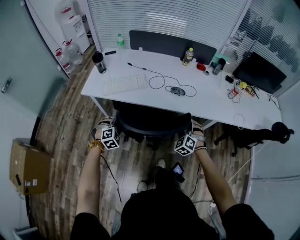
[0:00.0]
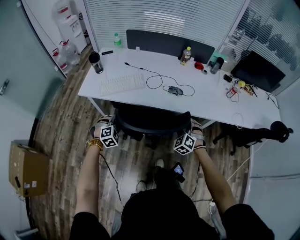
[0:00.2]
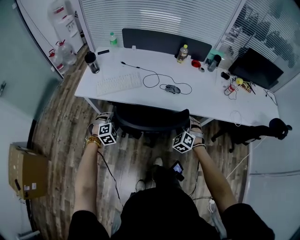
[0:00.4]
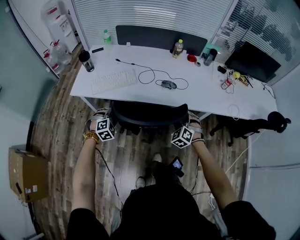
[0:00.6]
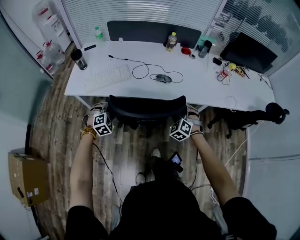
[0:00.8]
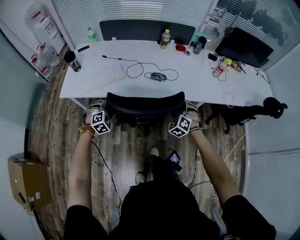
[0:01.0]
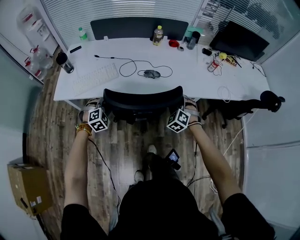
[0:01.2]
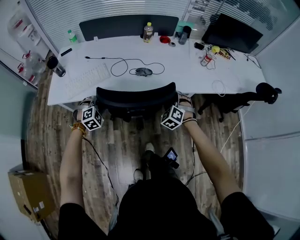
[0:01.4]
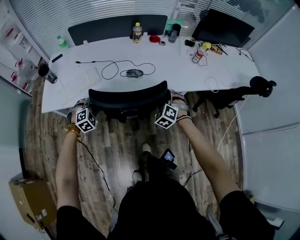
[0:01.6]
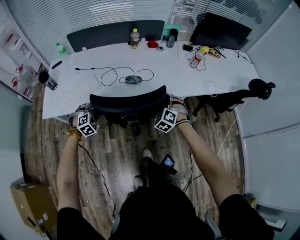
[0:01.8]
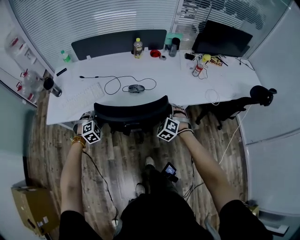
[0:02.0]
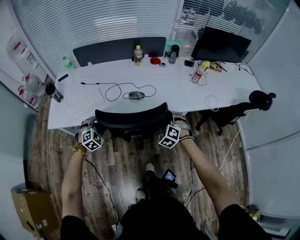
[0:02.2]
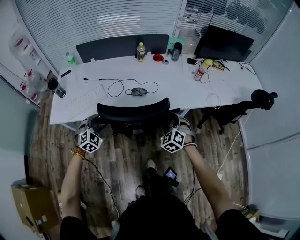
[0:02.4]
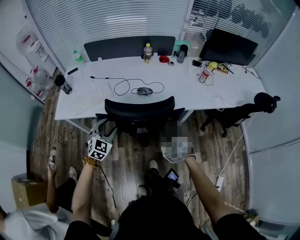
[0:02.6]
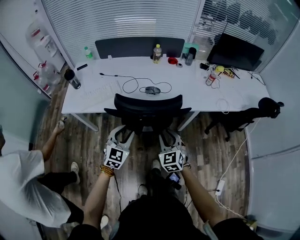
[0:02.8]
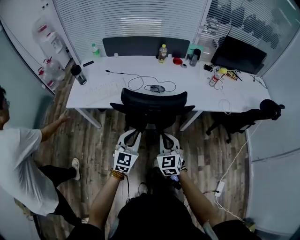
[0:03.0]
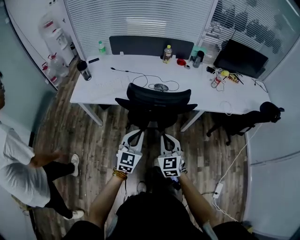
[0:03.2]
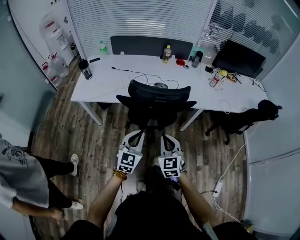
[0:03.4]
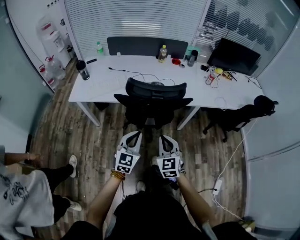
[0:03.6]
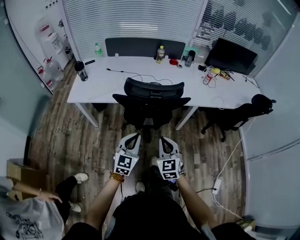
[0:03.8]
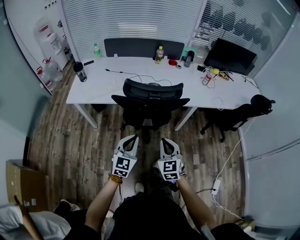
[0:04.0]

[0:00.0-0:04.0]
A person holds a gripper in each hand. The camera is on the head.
0:00.0 to 0:01.4: The right gripper shifts approximately 10 cm to the right and forward, while the left gripper is displaced forward and to the right by about 15 cm.
0:01.4 to 0:02.6: The right gripper travels backward by about 10 cm, and rotates some 20 degrees; the left gripper goes about 10 cm upward and to the right, and changes its angle by approximately 30 degrees.
0:02.6 to 0:04.0: The two grippers go about 20 cm backward. The right gripper swivels roughly 20 degrees, and closes, while the left gripper rotates approximately 30 degrees, and closes its fingers.

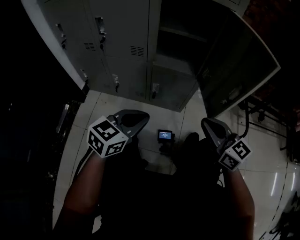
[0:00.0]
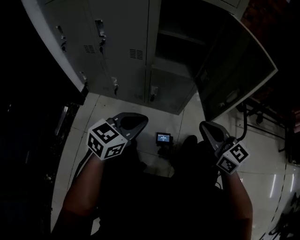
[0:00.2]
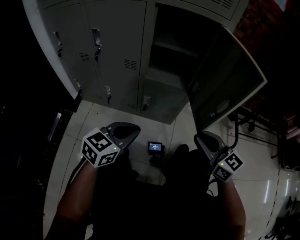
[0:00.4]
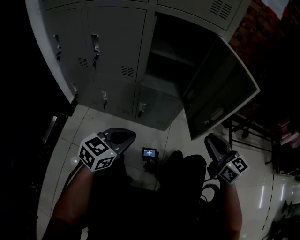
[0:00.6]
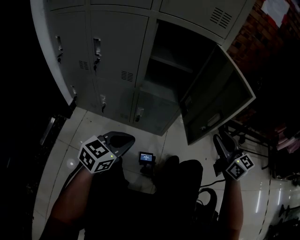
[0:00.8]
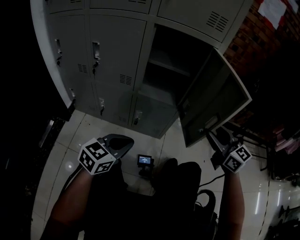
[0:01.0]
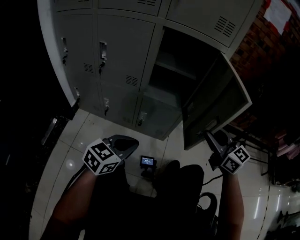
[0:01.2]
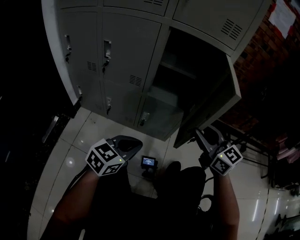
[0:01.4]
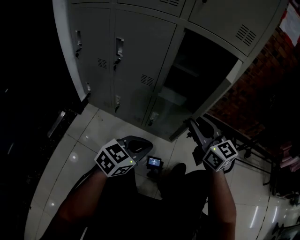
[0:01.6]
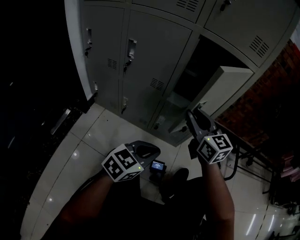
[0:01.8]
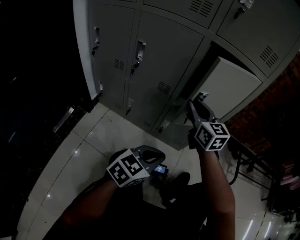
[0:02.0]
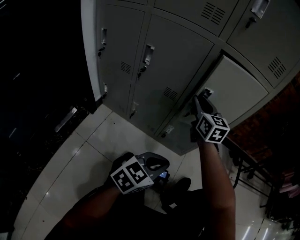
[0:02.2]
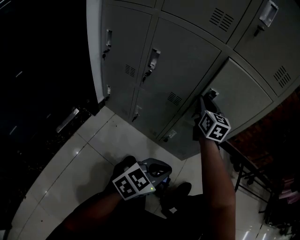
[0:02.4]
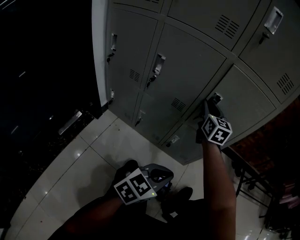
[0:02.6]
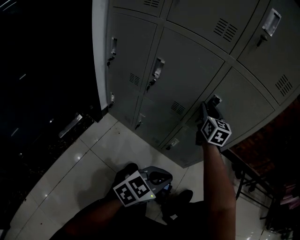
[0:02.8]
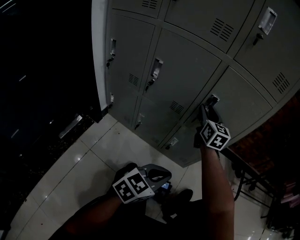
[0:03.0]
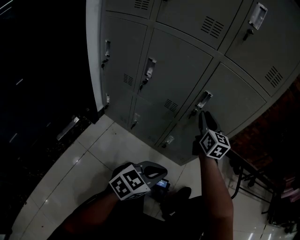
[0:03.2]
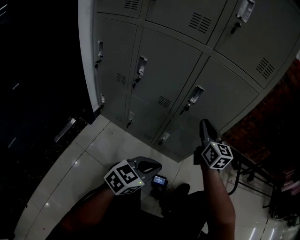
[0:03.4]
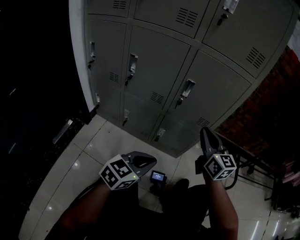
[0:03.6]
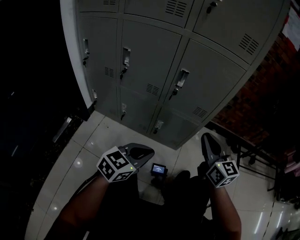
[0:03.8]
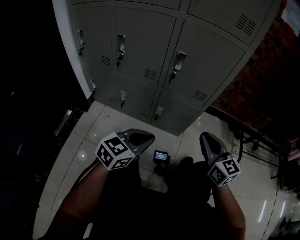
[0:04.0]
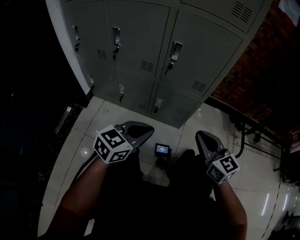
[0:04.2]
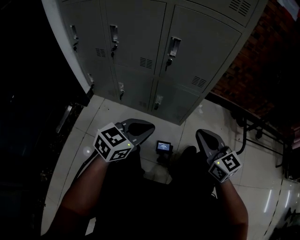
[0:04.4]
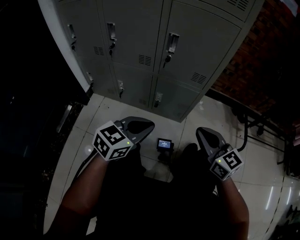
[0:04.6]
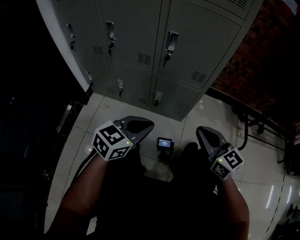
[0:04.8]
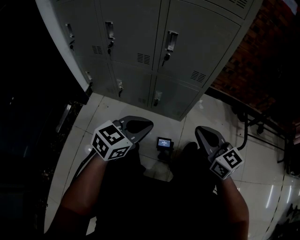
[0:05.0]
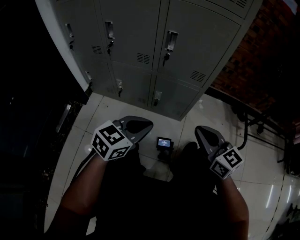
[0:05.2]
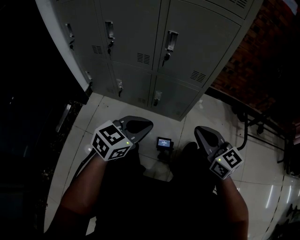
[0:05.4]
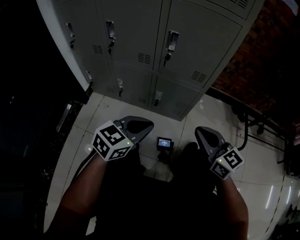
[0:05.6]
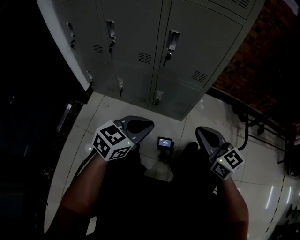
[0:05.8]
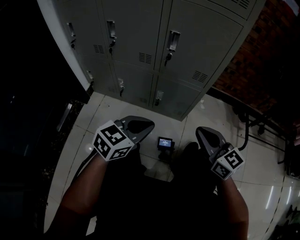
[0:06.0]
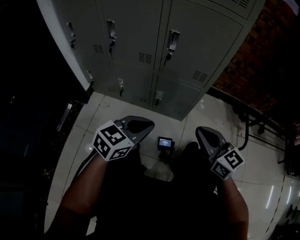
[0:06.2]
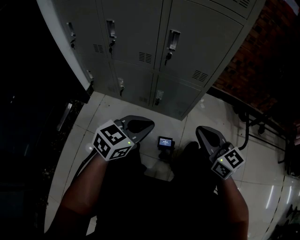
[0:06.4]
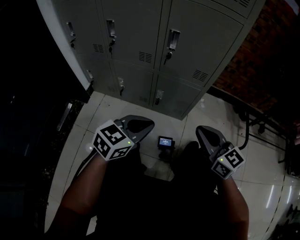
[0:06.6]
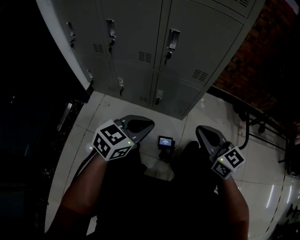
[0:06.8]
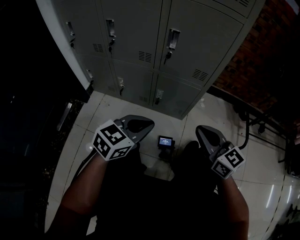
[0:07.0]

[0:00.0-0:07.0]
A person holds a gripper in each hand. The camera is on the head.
0:00.0 to 0:01.4: The right gripper travels forward and upward by roughly 10 cm, travels to the right and back again, about 10 cm each way, and opens up.
0:01.4 to 0:02.8: The right gripper heads forward and to the left, covering approximately 30 cm.
0:02.8 to 0:04.2: The right gripper shifts some 35 cm backward and to the right, and closes up.
0:04.2 to 0:05.6: The grippers stay close to where they were, moving slightly.
0:05.6 to 0:07.0: Both grippers stay about where they are.

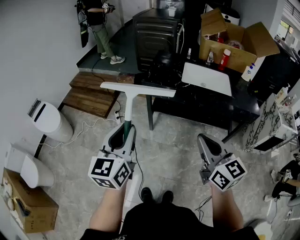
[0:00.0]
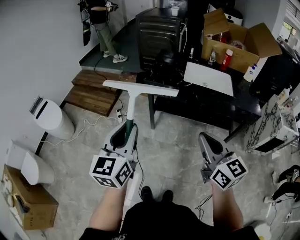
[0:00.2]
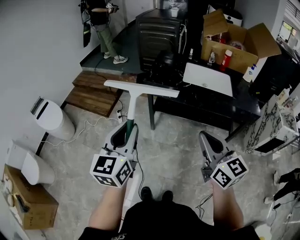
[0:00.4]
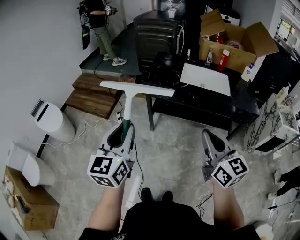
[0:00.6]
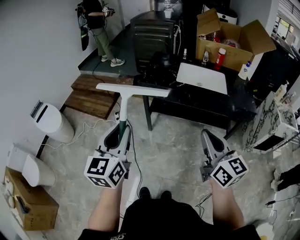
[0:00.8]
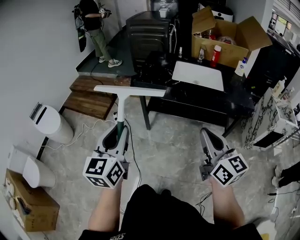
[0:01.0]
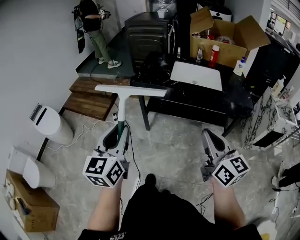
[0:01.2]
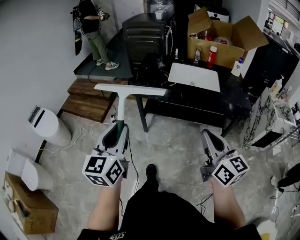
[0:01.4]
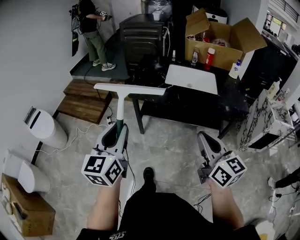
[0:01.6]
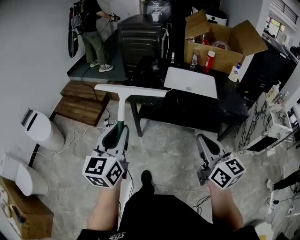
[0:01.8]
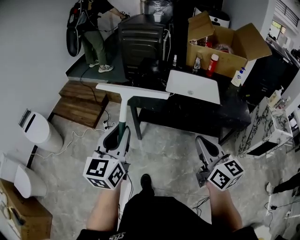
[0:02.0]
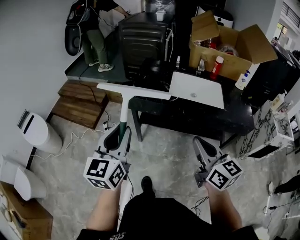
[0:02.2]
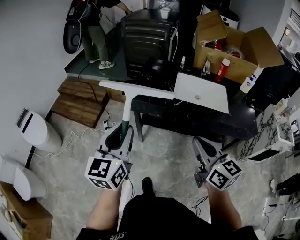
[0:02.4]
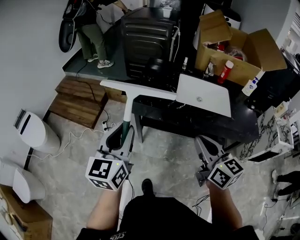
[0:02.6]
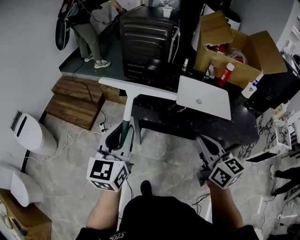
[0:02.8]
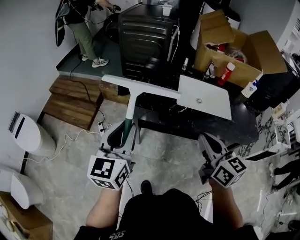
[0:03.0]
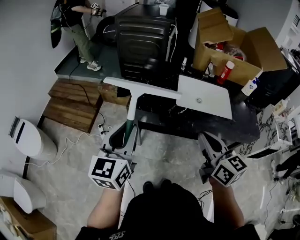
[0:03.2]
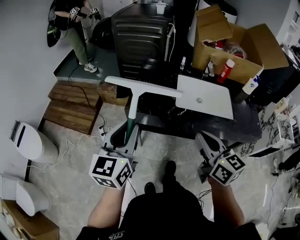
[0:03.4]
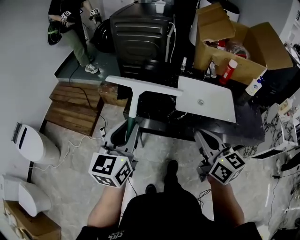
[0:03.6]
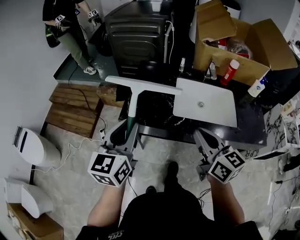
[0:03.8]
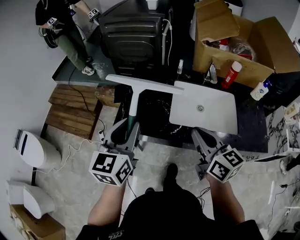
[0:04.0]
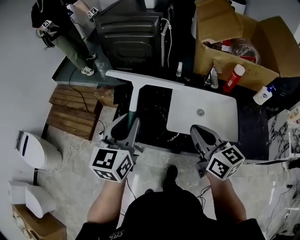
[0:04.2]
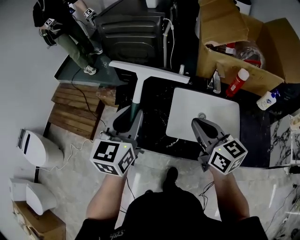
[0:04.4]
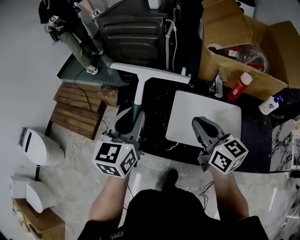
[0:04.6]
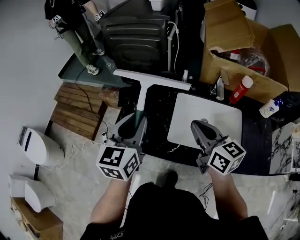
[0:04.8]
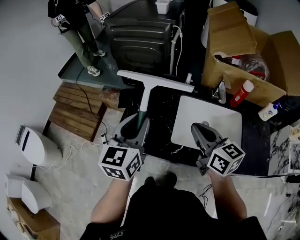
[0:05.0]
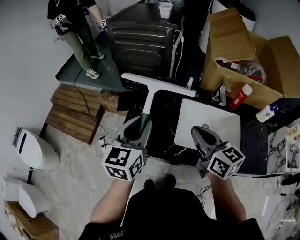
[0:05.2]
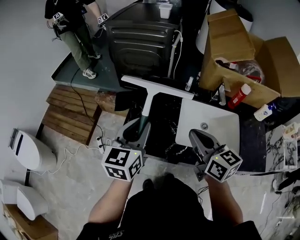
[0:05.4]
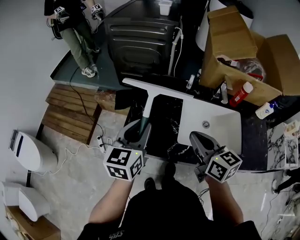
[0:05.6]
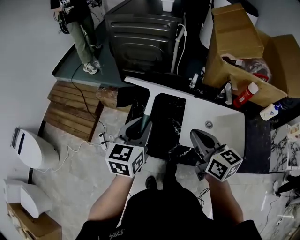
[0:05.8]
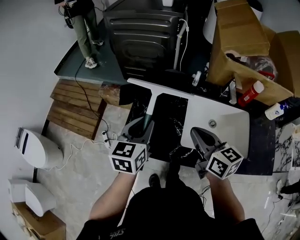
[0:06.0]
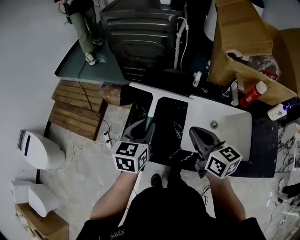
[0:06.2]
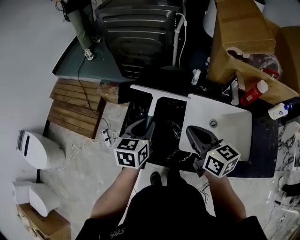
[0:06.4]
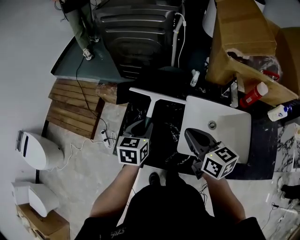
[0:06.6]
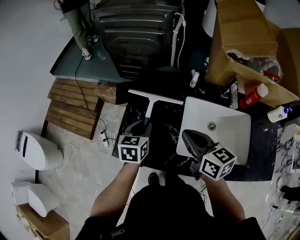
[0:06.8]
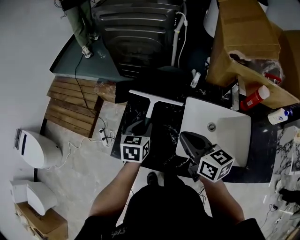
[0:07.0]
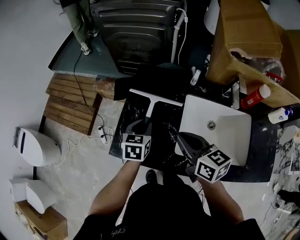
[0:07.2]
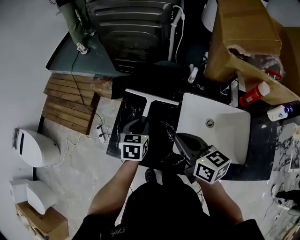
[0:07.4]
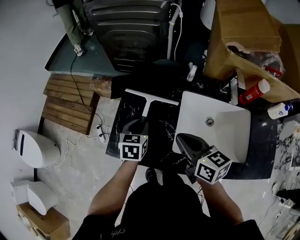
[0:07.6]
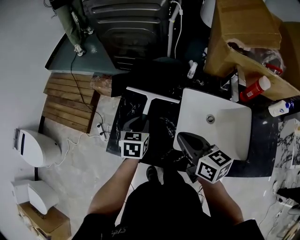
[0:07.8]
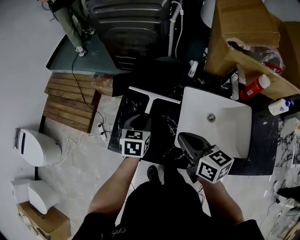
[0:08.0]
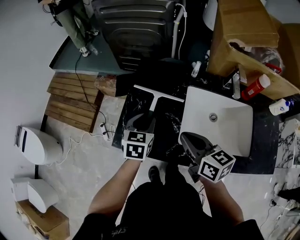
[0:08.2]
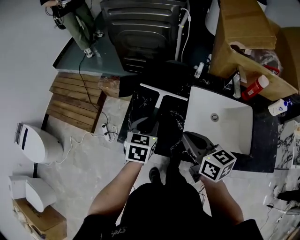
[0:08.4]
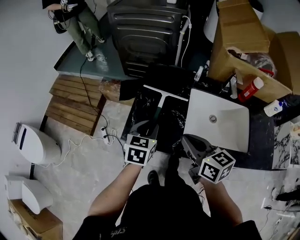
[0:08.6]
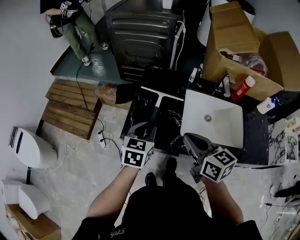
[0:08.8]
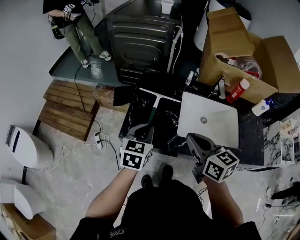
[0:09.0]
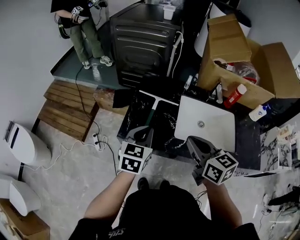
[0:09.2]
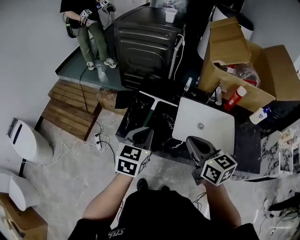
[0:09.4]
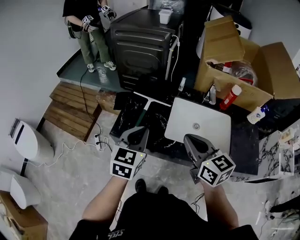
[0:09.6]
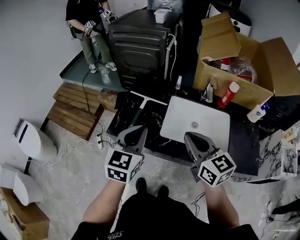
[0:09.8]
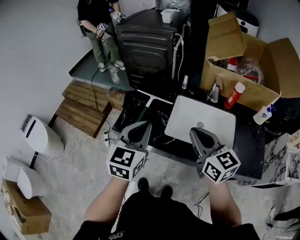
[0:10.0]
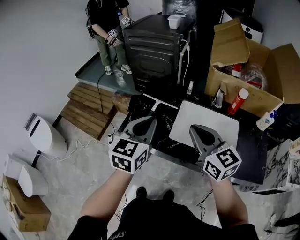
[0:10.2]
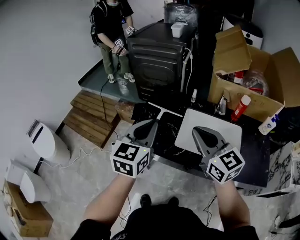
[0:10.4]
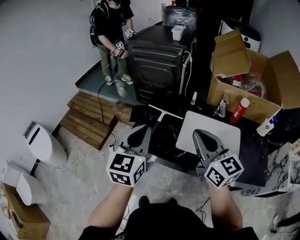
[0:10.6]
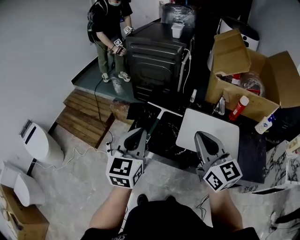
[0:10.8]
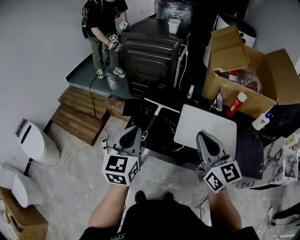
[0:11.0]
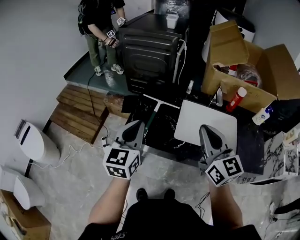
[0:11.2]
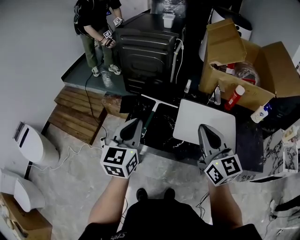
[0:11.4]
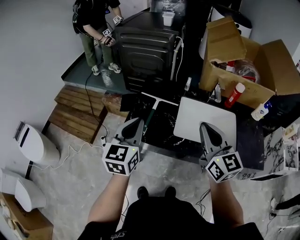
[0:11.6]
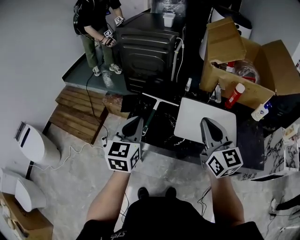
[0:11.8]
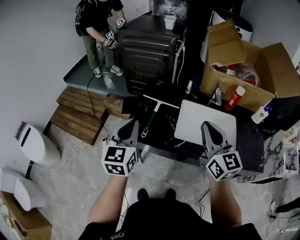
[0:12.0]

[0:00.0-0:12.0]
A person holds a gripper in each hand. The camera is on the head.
0:00.0 to 0:01.6: Both grippers move to the right, about 10 cm.
0:01.6 to 0:03.0: Both grippers move forward, approximately 25 cm.
0:03.0 to 0:04.4: The left gripper travels forward and to the right by approximately 30 cm, while the right gripper goes some 30 cm forward.
0:04.4 to 0:06.0: The left gripper moves downward and forward, about 10 cm. The right gripper travels to the left by some 5 cm.
0:06.0 to 0:07.6: The left gripper is displaced downward by about 15 cm, and rotates about 20 degrees, while the right gripper is displaced downward by some 5 cm.
0:07.6 to 0:09.0: The grippers both shift backward and upward by roughly 15 cm.
0:09.0 to 0:10.4: The right gripper shifts approximately 10 cm upward and to the right, and swivels approximately 30 degrees; the left gripper travels upward by approximately 15 cm.
0:10.4 to 0:12.0: The left gripper moves to the left, about 10 cm.
